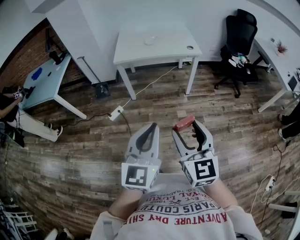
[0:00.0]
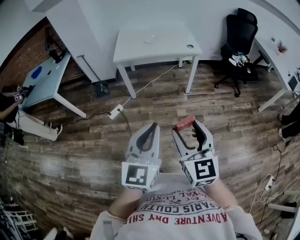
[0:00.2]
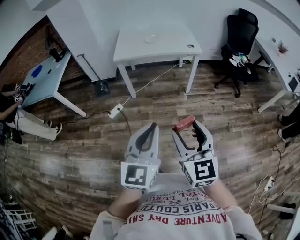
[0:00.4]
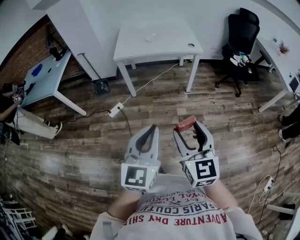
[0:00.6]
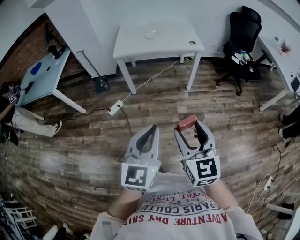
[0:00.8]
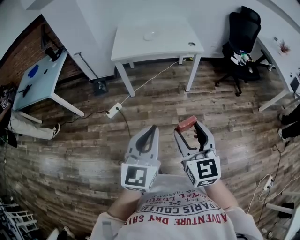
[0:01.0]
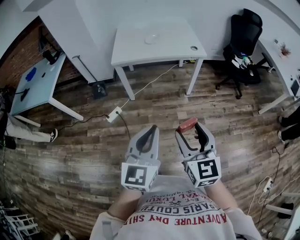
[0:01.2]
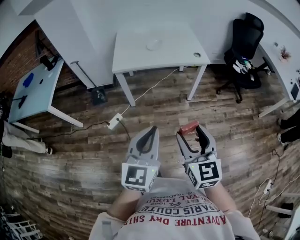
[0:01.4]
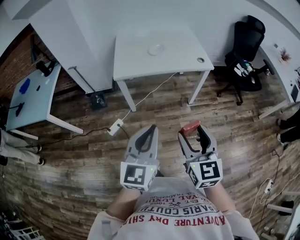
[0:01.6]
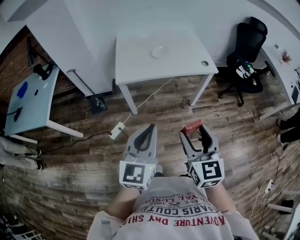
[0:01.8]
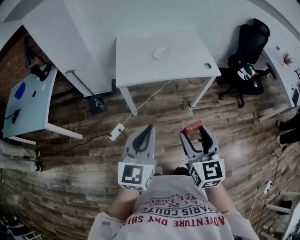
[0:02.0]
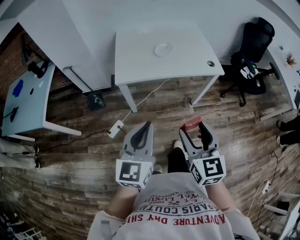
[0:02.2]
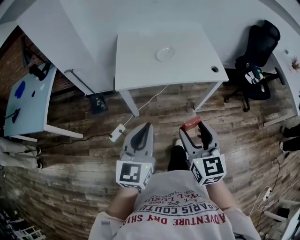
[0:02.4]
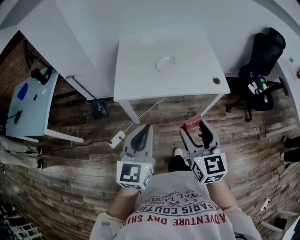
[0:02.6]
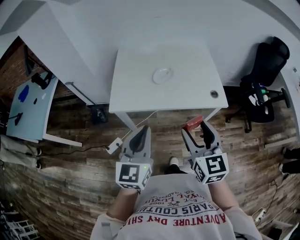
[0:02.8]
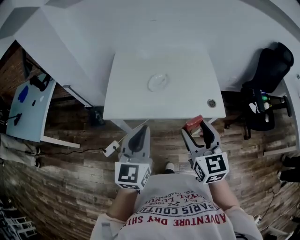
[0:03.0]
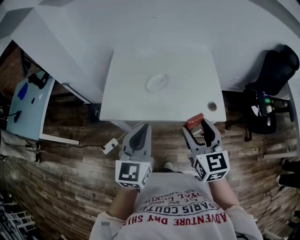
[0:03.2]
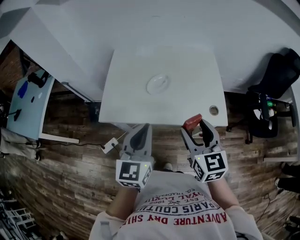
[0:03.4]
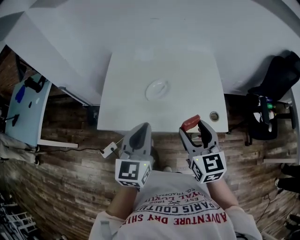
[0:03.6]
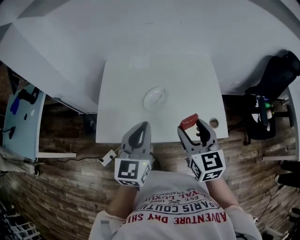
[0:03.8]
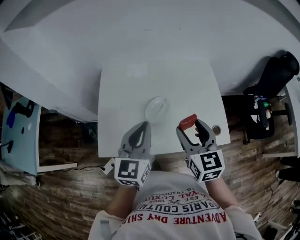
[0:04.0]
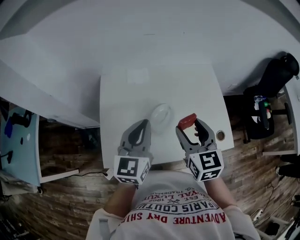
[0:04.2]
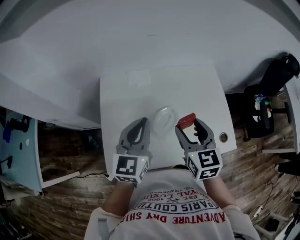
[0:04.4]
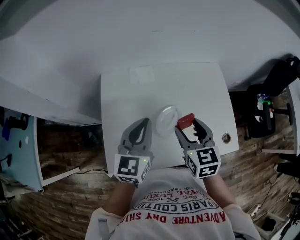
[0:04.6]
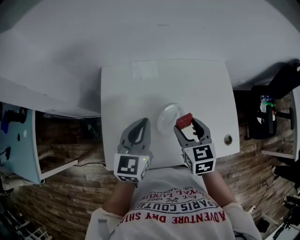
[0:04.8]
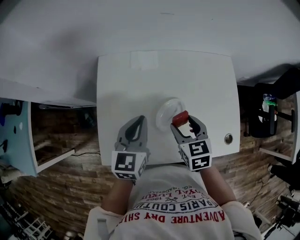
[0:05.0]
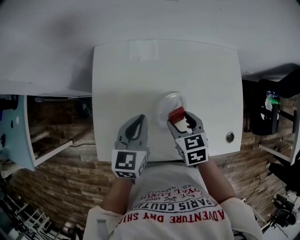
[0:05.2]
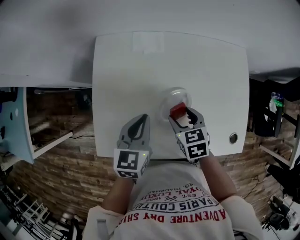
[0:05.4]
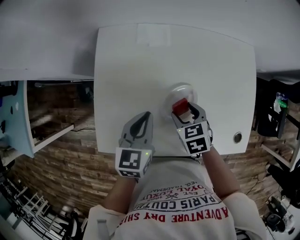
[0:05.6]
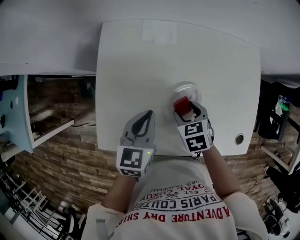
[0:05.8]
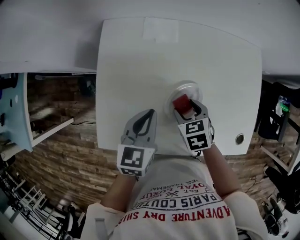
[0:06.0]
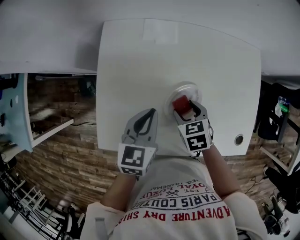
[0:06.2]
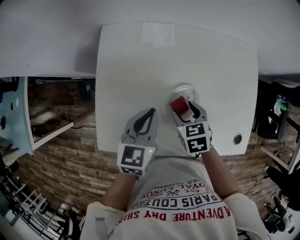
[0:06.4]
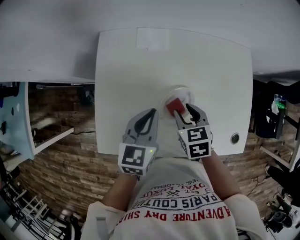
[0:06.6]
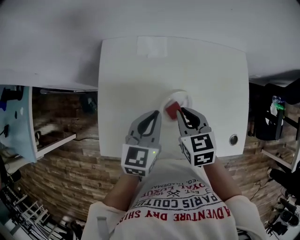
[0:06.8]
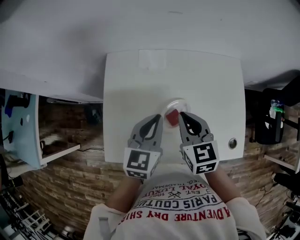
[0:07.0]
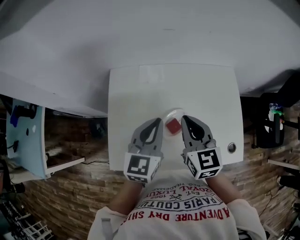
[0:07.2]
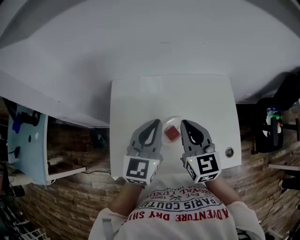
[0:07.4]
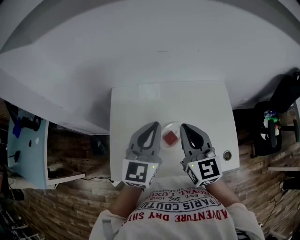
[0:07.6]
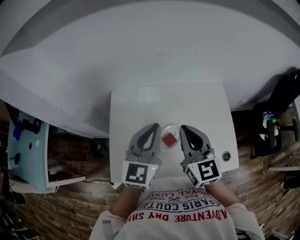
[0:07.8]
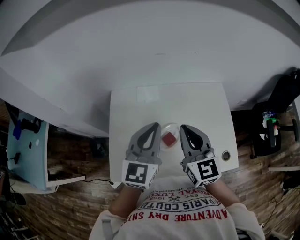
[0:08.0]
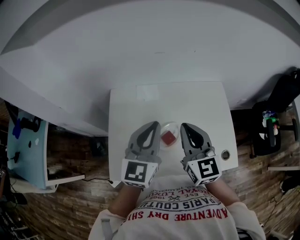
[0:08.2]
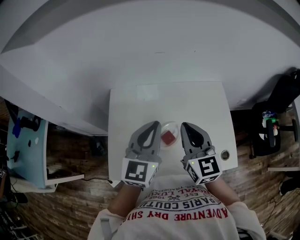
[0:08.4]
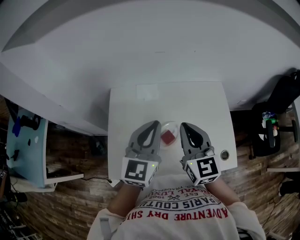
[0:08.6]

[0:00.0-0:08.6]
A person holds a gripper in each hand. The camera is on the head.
0:00.0 to 0:01.4: The right gripper travels forward by some 15 cm, while the left gripper goes roughly 15 cm forward and to the left.
0:01.4 to 0:02.8: Both grippers move forward, roughly 40 cm.
0:02.8 to 0:04.4: Both grippers travel together forward, roughly 40 cm.
0:04.4 to 0:05.8: Both grippers move downward, some 20 cm. The left gripper changes its angle by about 30 degrees, while the right gripper points its fingers approximately 40 degrees further downward.
0:05.8 to 0:07.2: The left gripper goes some 15 cm upward, and swivels some 20 degrees. The right gripper is displaced upward by approximately 25 cm, points its fingers some 40 degrees further upward, and closes its fingers.
0:07.2 to 0:08.6: Both grippers move upward, approximately 10 cm.

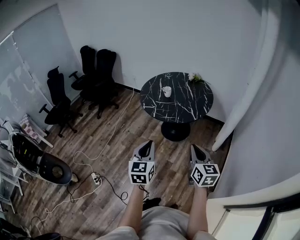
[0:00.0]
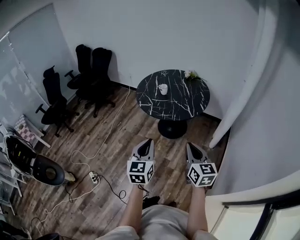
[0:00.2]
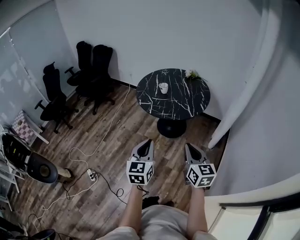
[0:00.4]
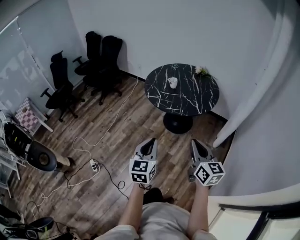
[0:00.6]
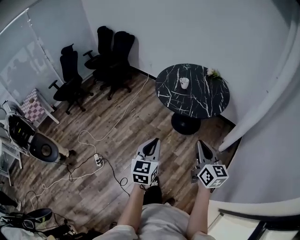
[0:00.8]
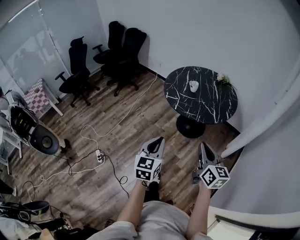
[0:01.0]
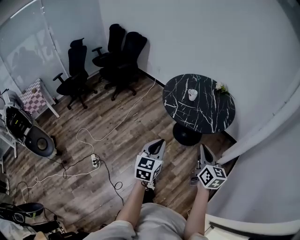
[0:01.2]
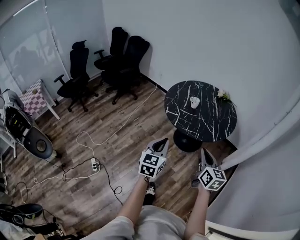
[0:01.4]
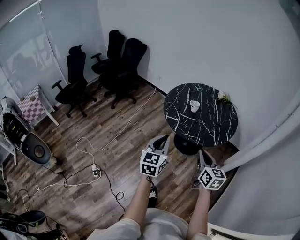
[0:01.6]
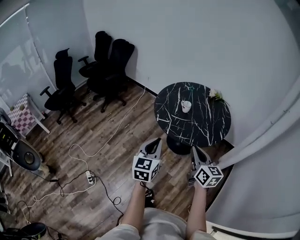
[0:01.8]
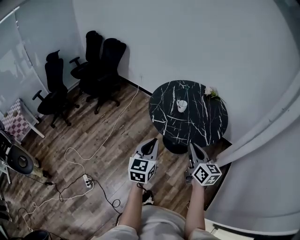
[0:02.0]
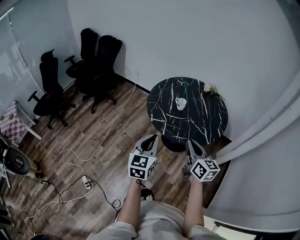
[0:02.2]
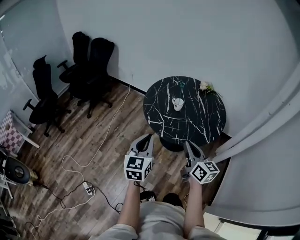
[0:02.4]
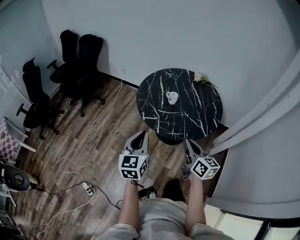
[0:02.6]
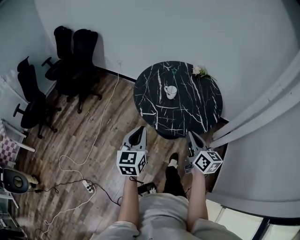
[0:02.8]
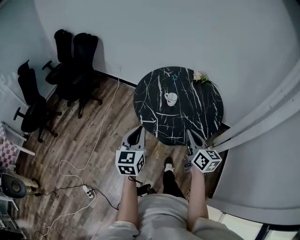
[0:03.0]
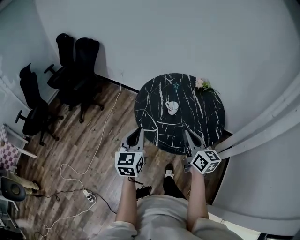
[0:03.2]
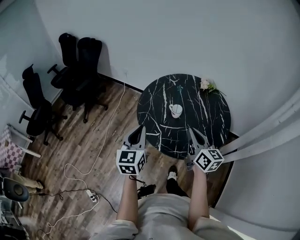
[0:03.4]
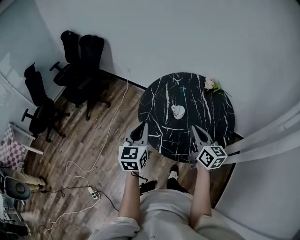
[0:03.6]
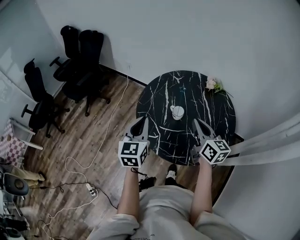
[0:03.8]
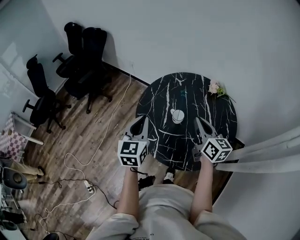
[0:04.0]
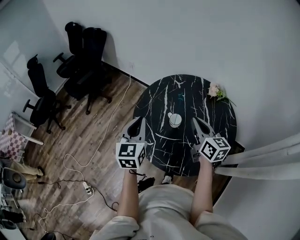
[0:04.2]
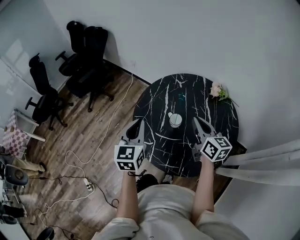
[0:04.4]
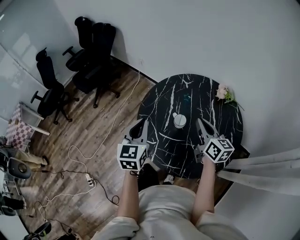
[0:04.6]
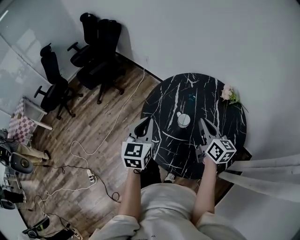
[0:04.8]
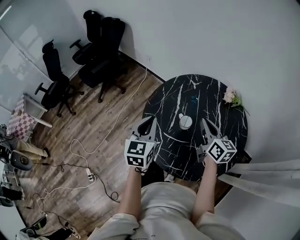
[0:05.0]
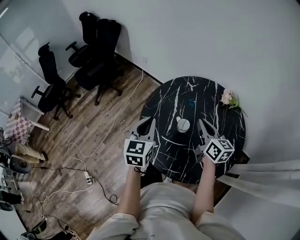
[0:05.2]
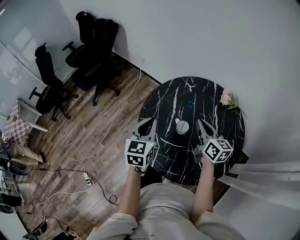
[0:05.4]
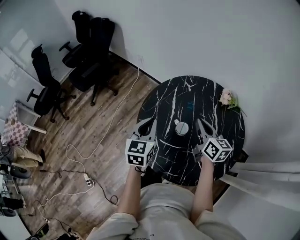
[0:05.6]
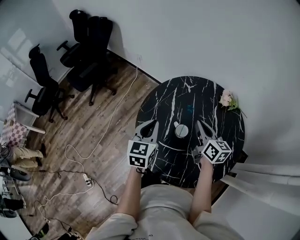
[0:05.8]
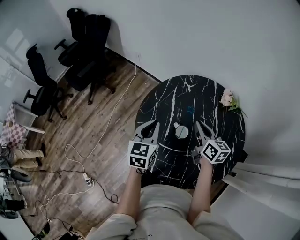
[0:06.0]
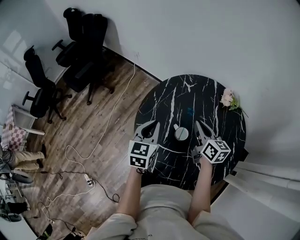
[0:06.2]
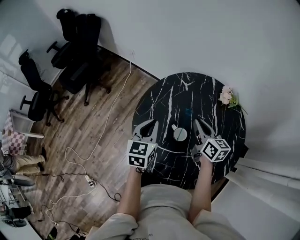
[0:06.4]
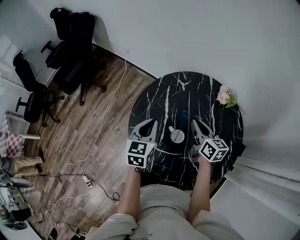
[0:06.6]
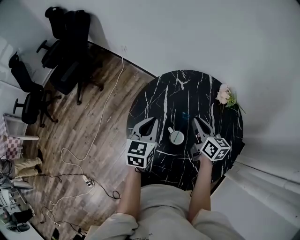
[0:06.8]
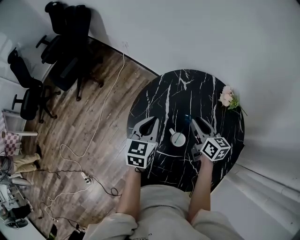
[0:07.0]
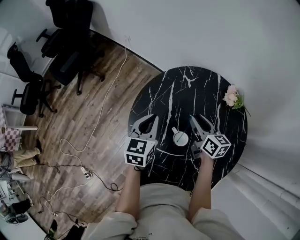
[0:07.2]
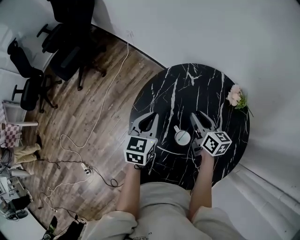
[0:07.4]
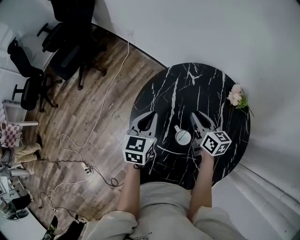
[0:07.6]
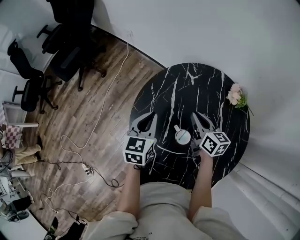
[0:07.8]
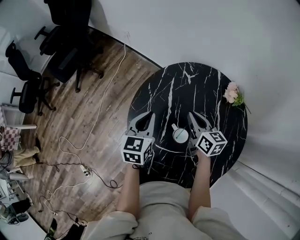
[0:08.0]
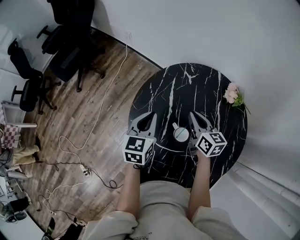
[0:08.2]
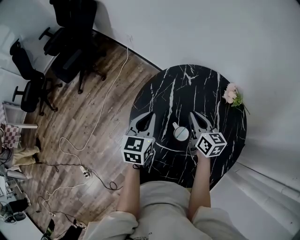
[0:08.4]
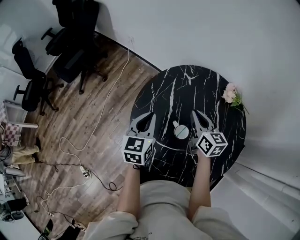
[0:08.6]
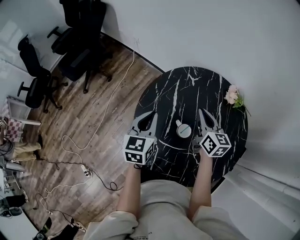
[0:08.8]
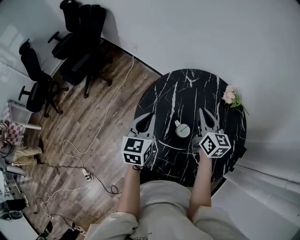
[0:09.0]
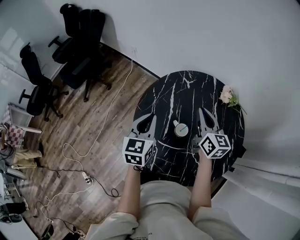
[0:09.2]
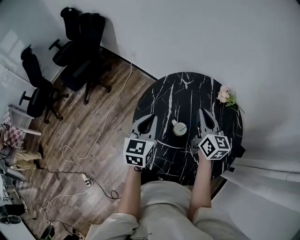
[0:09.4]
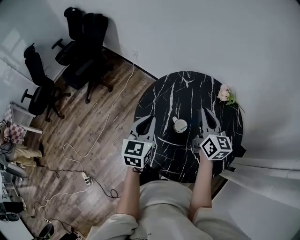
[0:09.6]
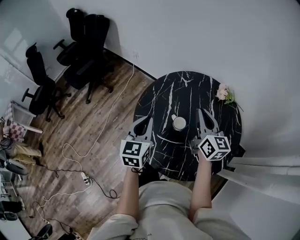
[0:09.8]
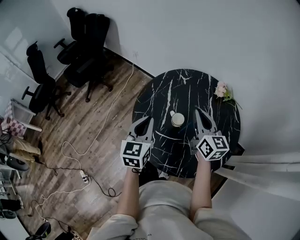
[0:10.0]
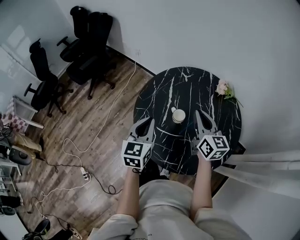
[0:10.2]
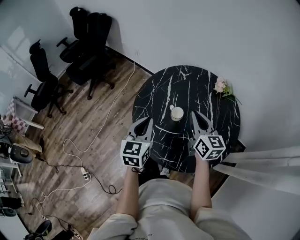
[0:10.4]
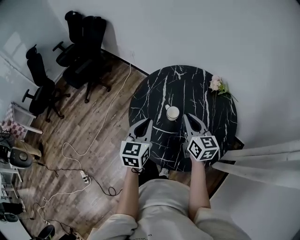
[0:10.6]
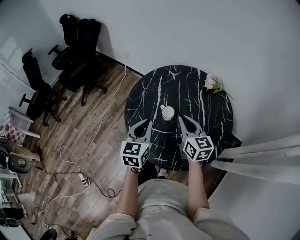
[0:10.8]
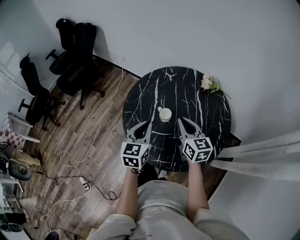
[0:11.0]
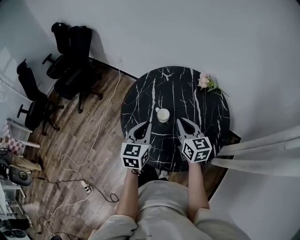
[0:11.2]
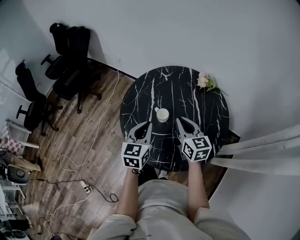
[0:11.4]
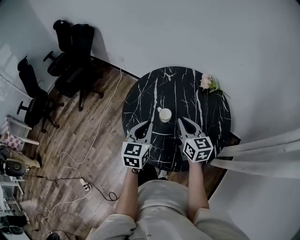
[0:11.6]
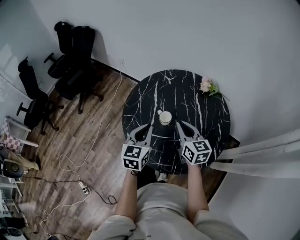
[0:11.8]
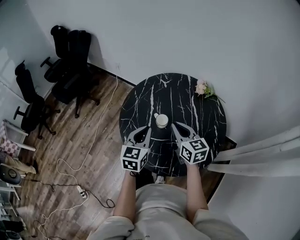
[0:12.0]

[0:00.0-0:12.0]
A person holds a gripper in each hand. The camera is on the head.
0:00.0 to 0:01.6: Both grippers move forward and to the left, some 20 cm.
0:01.6 to 0:03.0: Both grippers travel together forward, some 25 cm.
0:03.0 to 0:04.4: The right gripper moves forward, approximately 30 cm, while the left gripper moves forward and to the right, roughly 25 cm.
0:04.4 to 0:06.0: The two grippers go some 15 cm forward and downward.
0:06.0 to 0:07.6: Both grippers move forward and downward, some 15 cm.
0:07.6 to 0:09.0: The right gripper travels upward and backward by approximately 10 cm. Meanwhile the left gripper goes some 10 cm backward and upward.
0:09.0 to 0:10.4: Both grippers move backward, approximately 15 cm.
0:10.4 to 0:12.0: The left gripper heads to the right, covering roughly 5 cm.

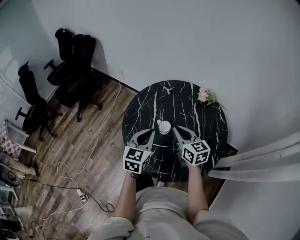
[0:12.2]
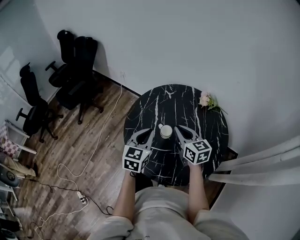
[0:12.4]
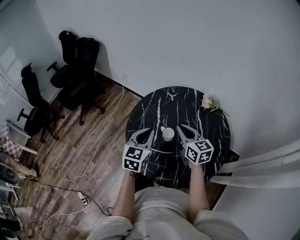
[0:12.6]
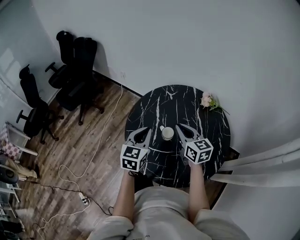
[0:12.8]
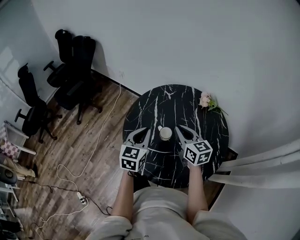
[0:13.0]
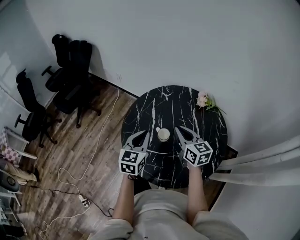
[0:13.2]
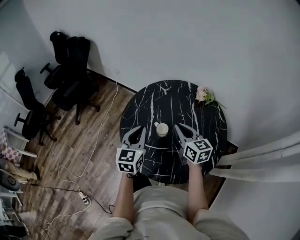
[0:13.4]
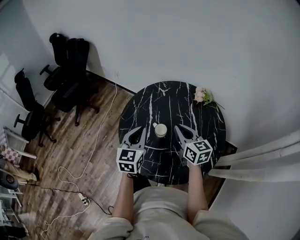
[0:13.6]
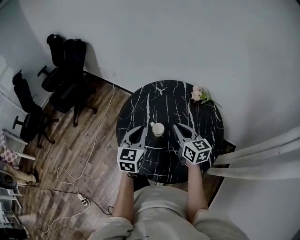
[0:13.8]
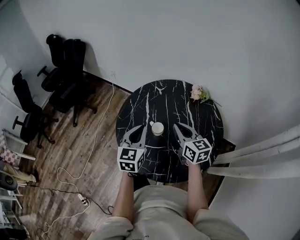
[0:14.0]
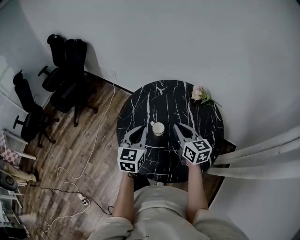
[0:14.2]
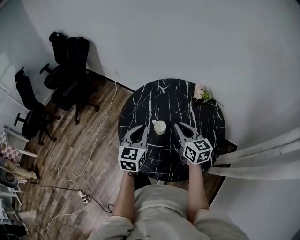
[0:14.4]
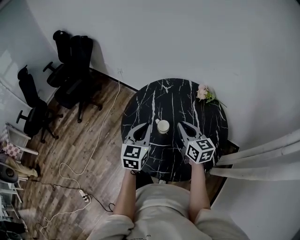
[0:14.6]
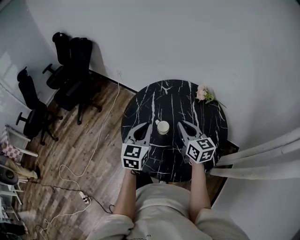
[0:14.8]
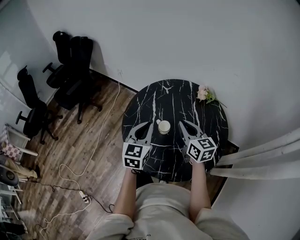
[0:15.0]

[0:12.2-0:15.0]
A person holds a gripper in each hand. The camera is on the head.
0:12.2 to 0:15.0: The grippers move only a little.
